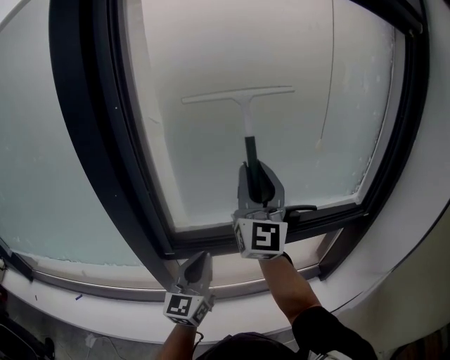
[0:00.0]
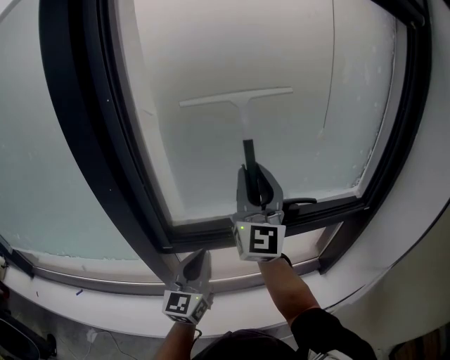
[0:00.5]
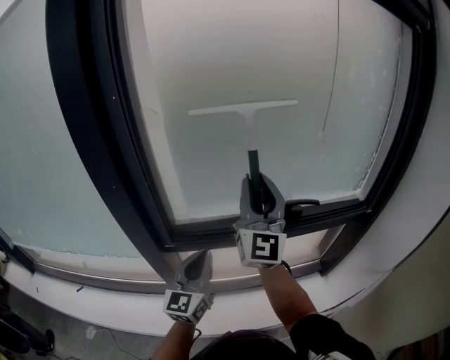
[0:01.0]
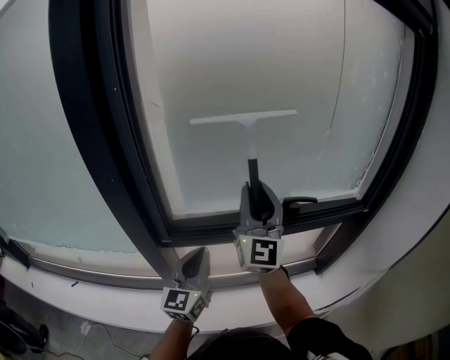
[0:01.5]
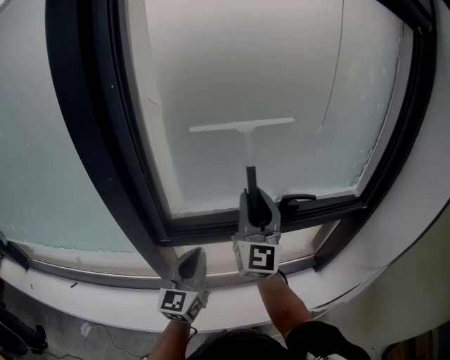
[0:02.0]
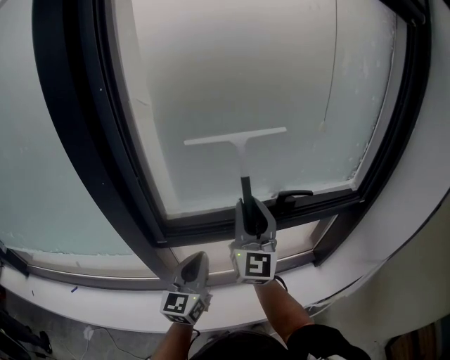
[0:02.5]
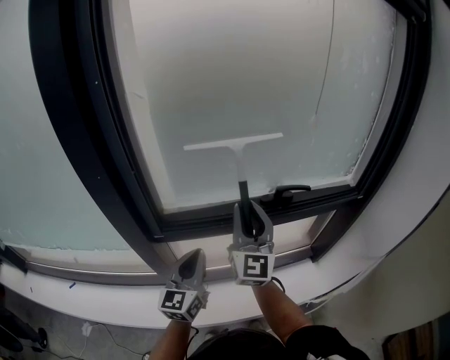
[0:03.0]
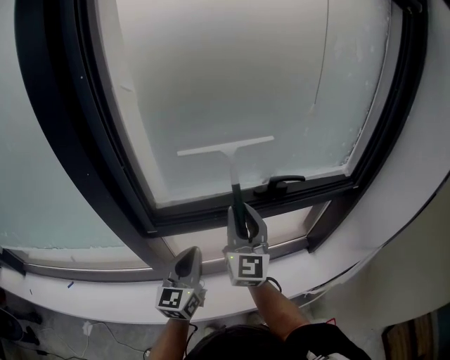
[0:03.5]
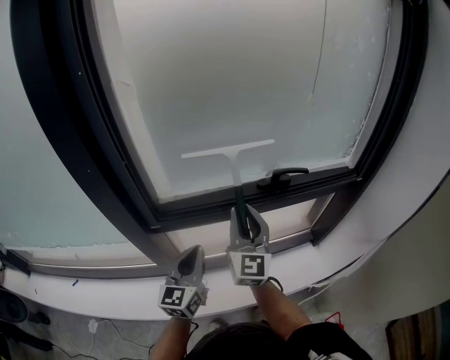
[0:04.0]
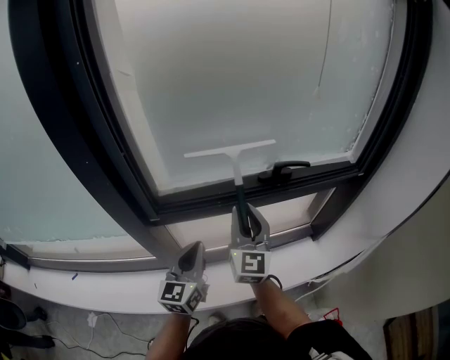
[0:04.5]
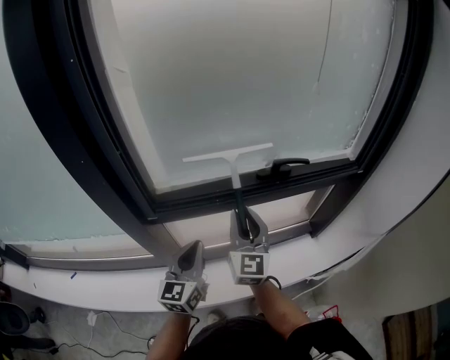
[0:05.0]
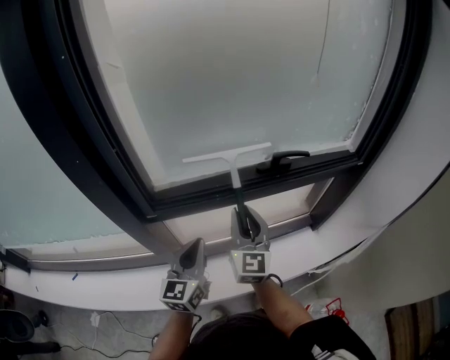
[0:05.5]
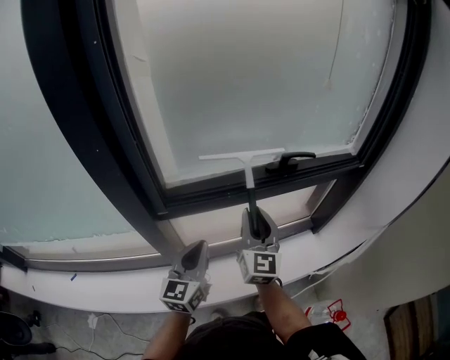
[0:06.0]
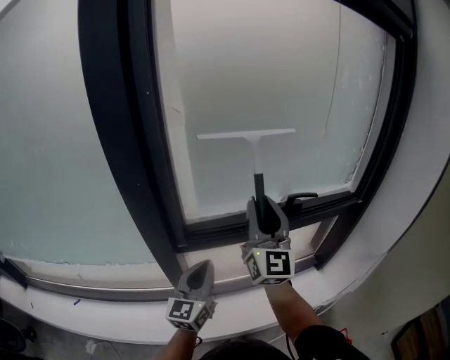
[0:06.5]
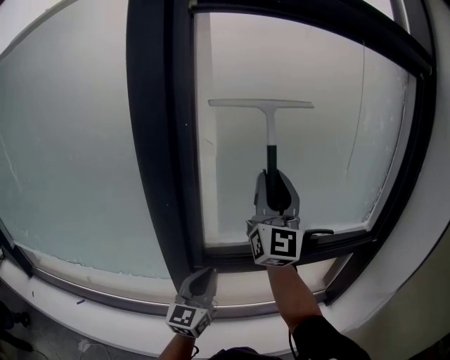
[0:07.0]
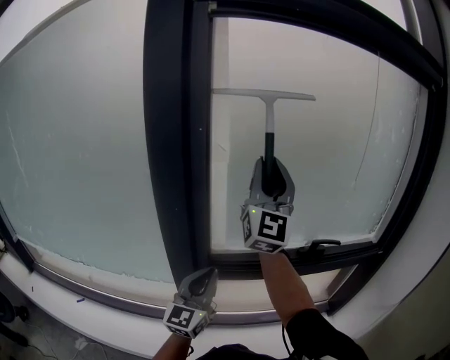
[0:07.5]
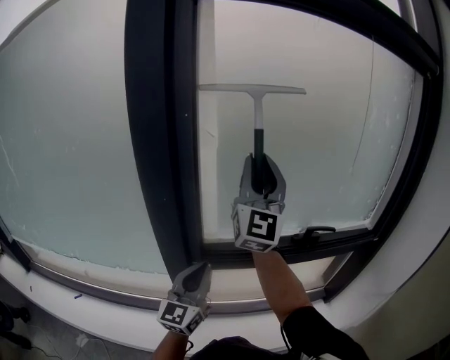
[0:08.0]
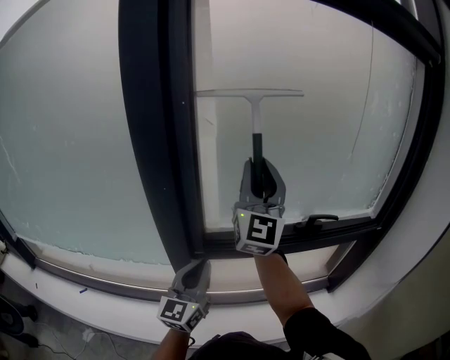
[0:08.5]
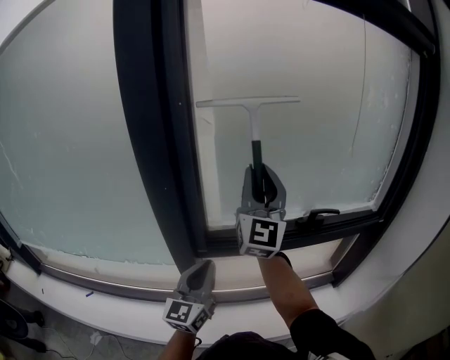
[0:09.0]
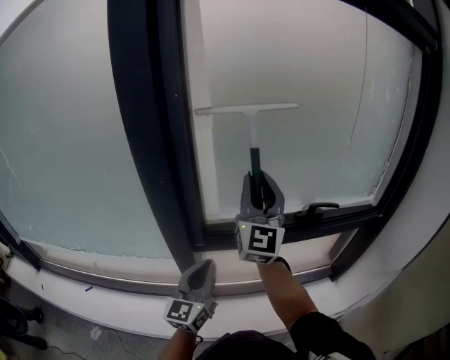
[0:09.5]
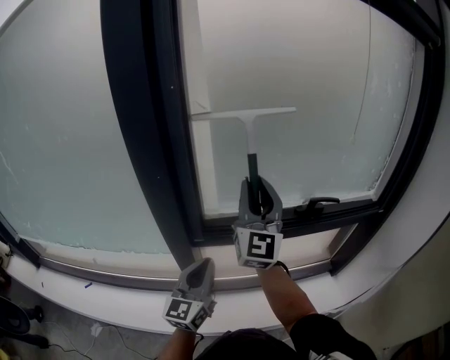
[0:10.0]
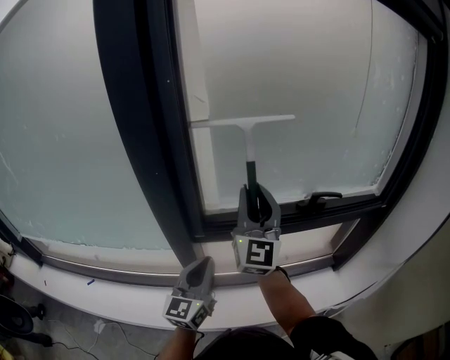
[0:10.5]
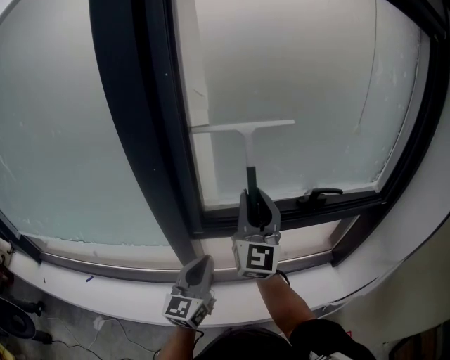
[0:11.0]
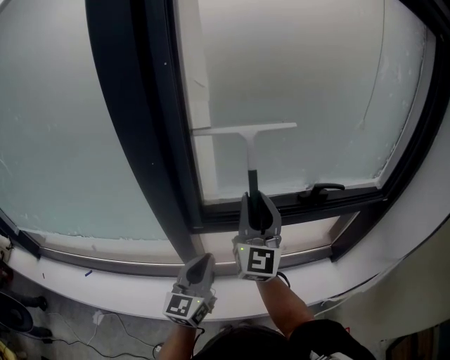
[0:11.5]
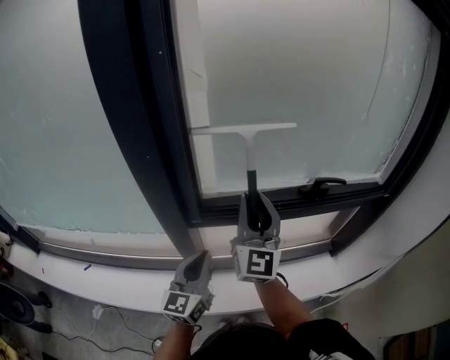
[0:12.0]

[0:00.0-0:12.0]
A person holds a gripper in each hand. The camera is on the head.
0:00.0 to 0:02.0: The right gripper travels downward by about 10 cm.
0:02.0 to 0:04.0: The right gripper moves downward, some 10 cm.
0:04.0 to 0:06.0: The right gripper changes place by some 5 cm.
0:06.0 to 0:08.0: The left gripper shifts approximately 15 cm upward and to the left, and turns by some 20 degrees; the right gripper travels upward by about 35 cm, and angles its fingers upward, by some 30 degrees.
0:08.0 to 0:10.0: The left gripper shifts by some 5 cm; the right gripper moves downward, about 10 cm.
0:10.0 to 0:12.0: The right gripper goes roughly 10 cm downward.

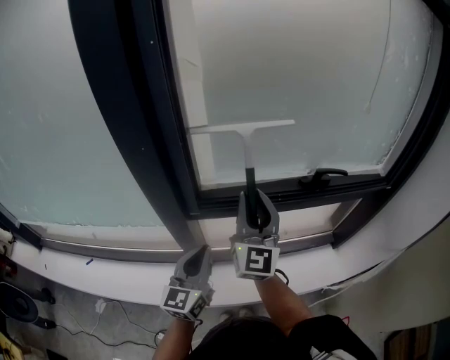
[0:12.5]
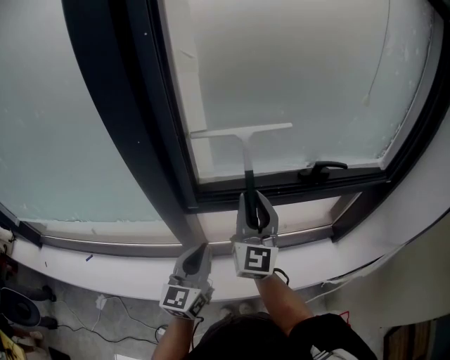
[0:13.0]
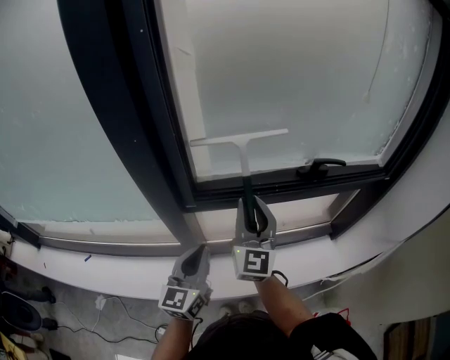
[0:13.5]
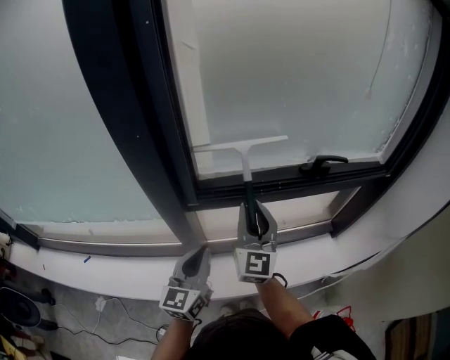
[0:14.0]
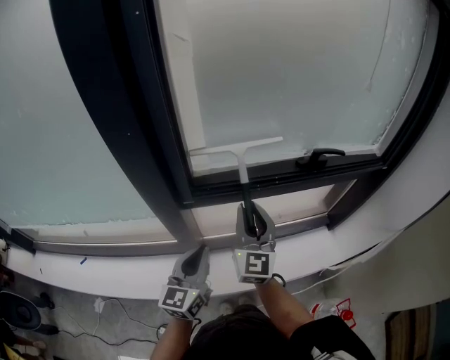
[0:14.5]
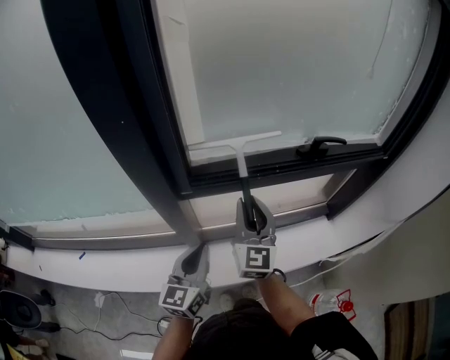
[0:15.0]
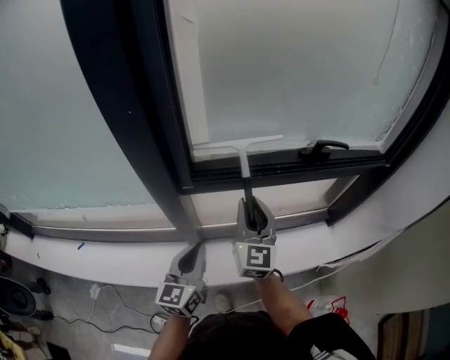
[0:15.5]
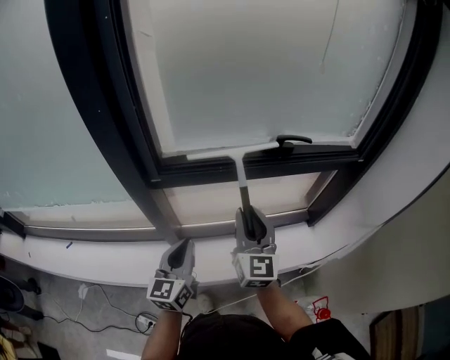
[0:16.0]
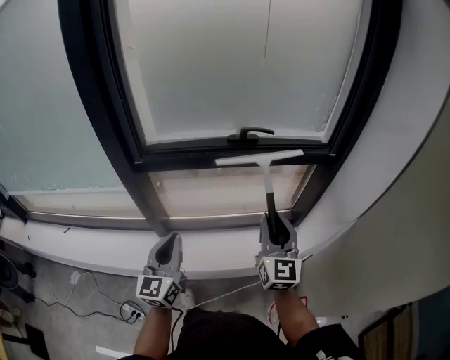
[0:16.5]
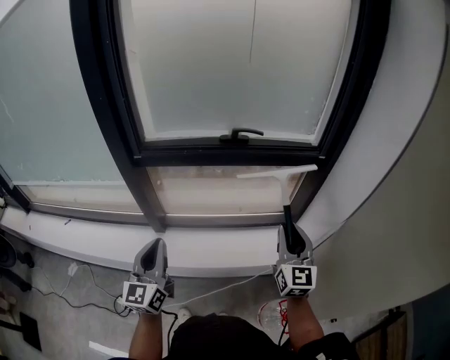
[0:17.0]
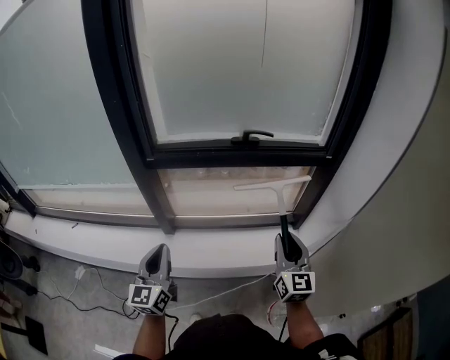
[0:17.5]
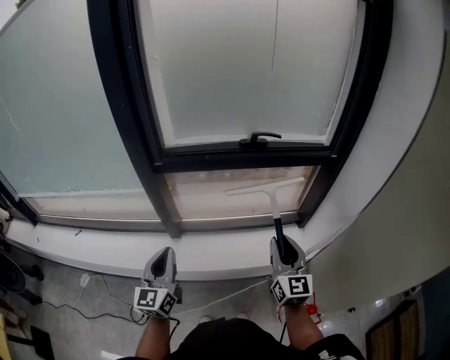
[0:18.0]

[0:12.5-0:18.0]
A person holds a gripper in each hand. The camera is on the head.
0:12.5 to 0:14.5: The left gripper ends up some 5 cm from where it was, while the right gripper travels downward by some 10 cm.
0:14.5 to 0:16.0: The left gripper heads to the right, covering approximately 5 cm; the right gripper travels to the right and backward by approximately 10 cm.
0:16.0 to 0:18.0: The left gripper goes about 15 cm backward, while the right gripper shifts some 25 cm backward and to the right.

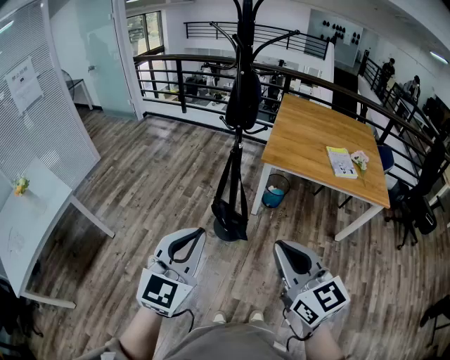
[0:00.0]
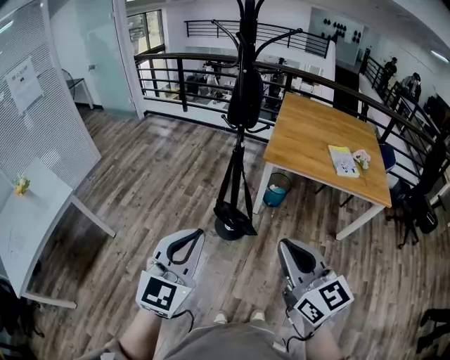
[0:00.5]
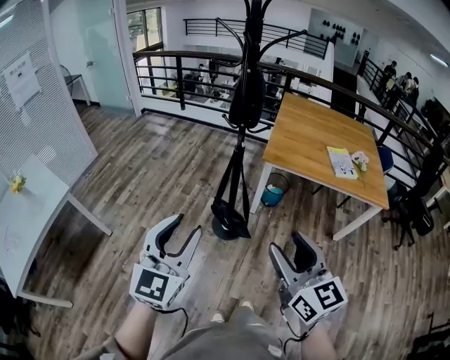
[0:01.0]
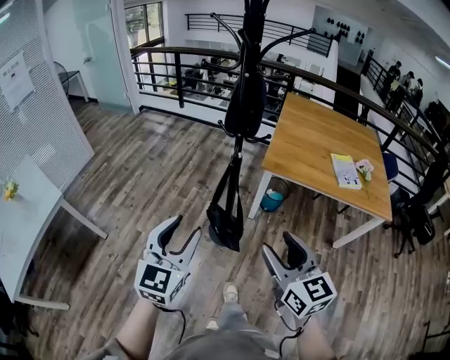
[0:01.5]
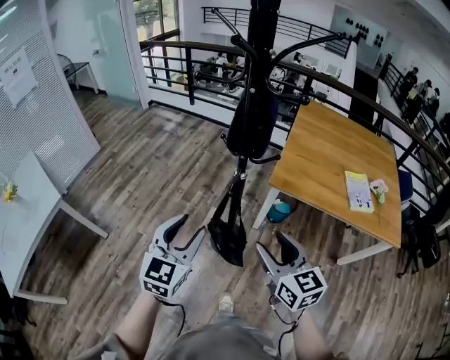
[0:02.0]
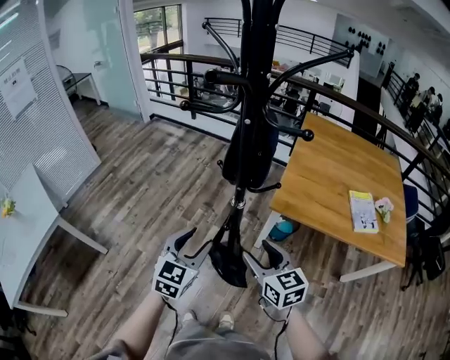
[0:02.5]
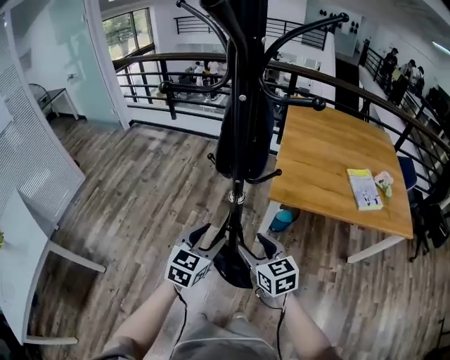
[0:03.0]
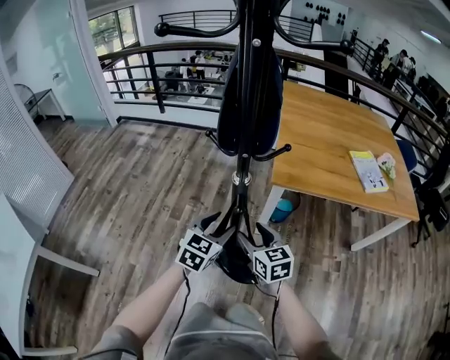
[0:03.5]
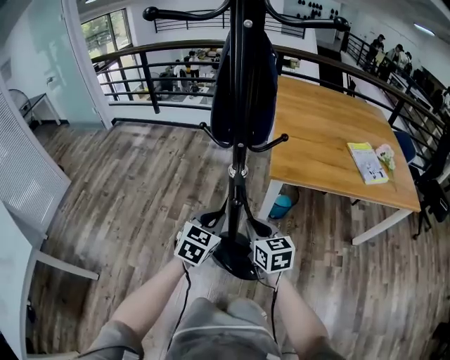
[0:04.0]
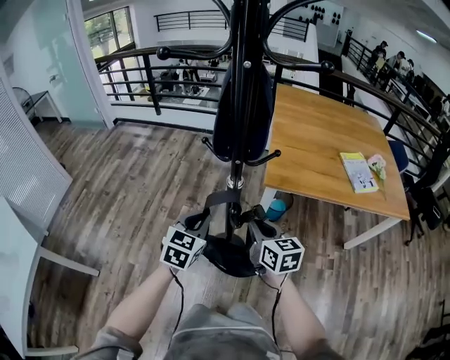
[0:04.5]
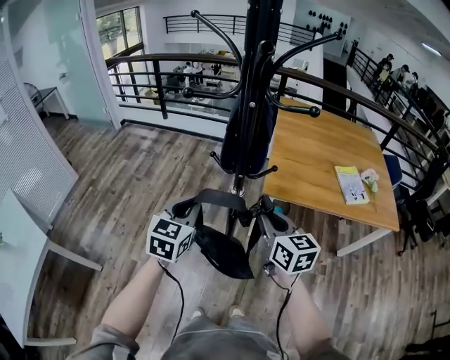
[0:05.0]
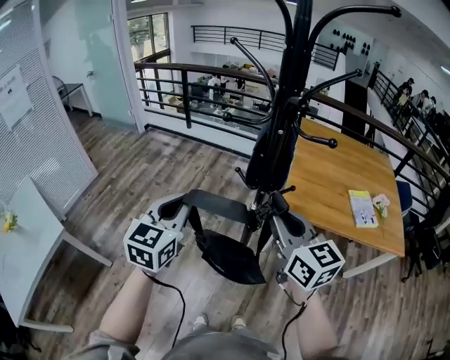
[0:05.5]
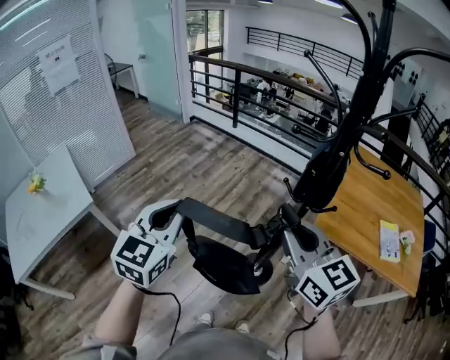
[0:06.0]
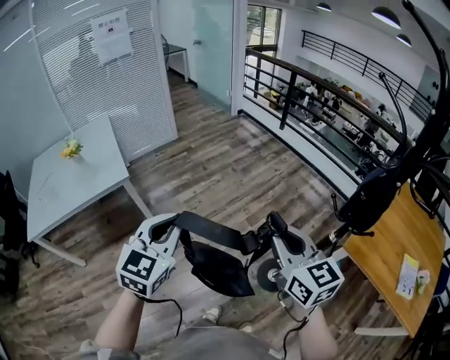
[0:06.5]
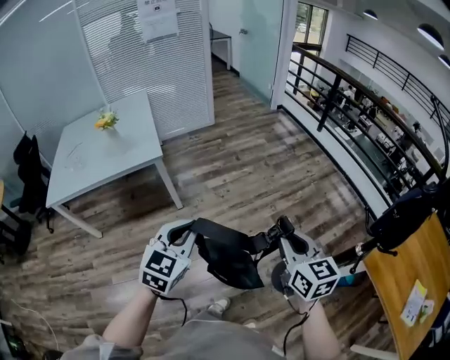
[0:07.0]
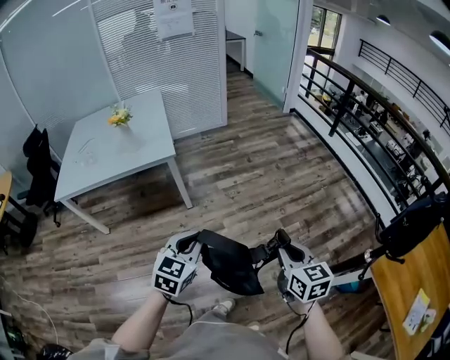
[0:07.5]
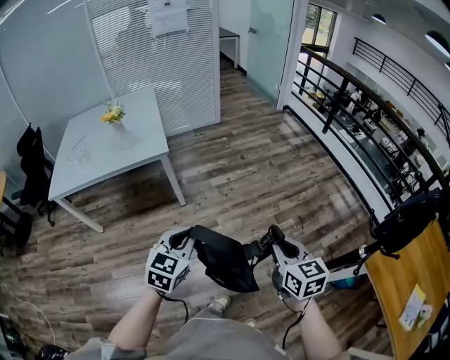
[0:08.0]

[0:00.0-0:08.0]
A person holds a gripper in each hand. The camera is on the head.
0:00.0 to 0:02.0: The left gripper moves forward, approximately 25 cm, and opens; the right gripper is displaced forward and downward by roughly 25 cm, and opens up.
0:02.0 to 0:04.0: The two grippers go about 30 cm downward and forward. The right gripper closes; the left gripper rotates some 30 degrees, and closes up.
0:04.0 to 0:06.0: Both grippers move upward, about 40 cm. The left gripper turns by roughly 40 degrees, while the right gripper changes its angle by some 40 degrees.
0:06.0 to 0:08.0: The left gripper moves approximately 30 cm, and swivels about 30 degrees. Meanwhile the right gripper changes place by about 30 cm, and rotates approximately 30 degrees.

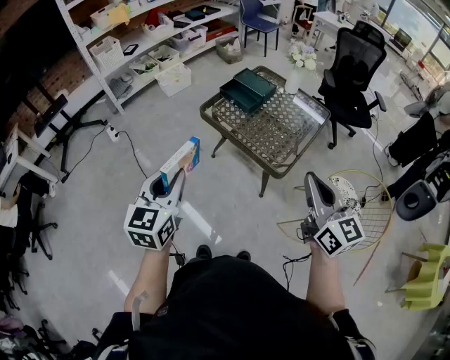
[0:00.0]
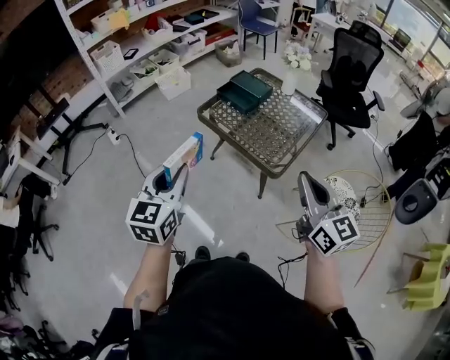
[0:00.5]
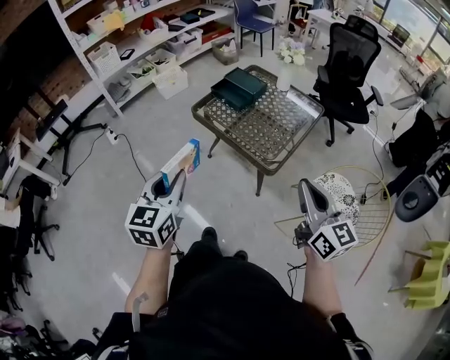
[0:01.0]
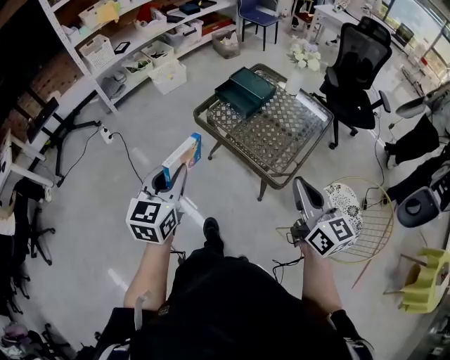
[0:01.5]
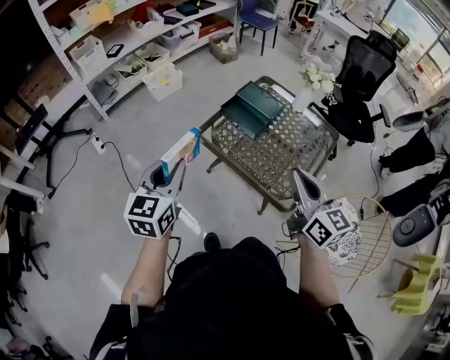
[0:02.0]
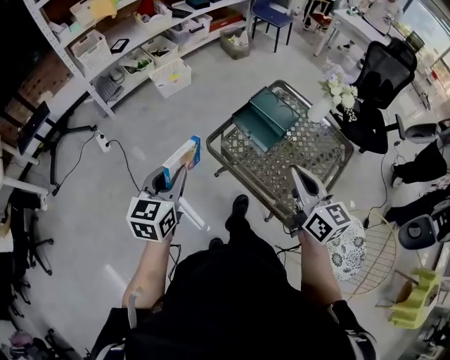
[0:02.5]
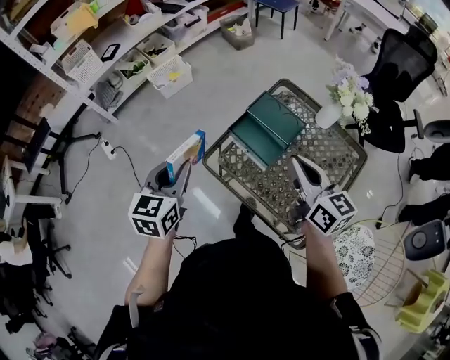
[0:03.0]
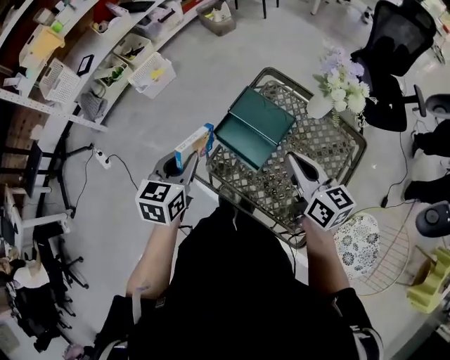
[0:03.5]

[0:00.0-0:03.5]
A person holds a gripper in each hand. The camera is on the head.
0:00.0 to 0:02.0: Both grippers travel together forward, approximately 20 cm.
0:02.0 to 0:03.5: Both grippers travel together forward, about 30 cm. The left gripper turns by about 20 degrees.
